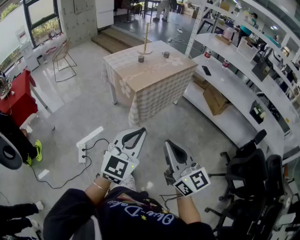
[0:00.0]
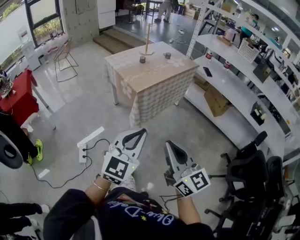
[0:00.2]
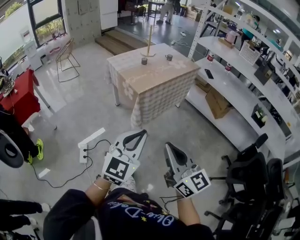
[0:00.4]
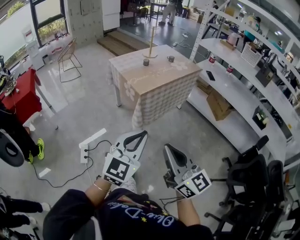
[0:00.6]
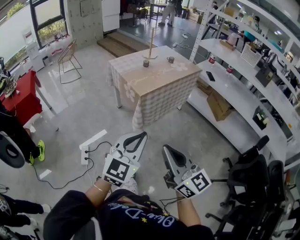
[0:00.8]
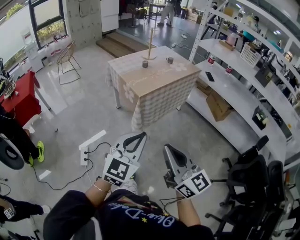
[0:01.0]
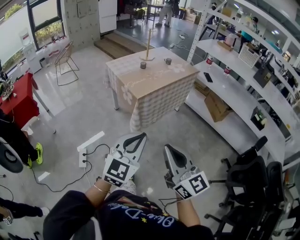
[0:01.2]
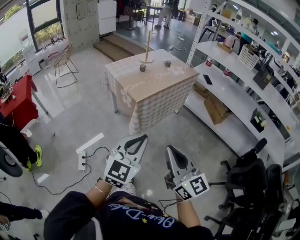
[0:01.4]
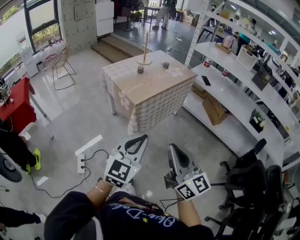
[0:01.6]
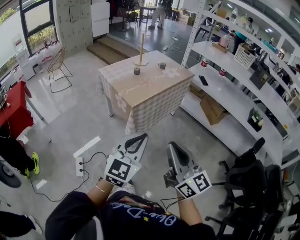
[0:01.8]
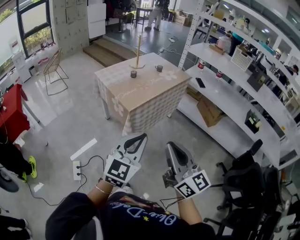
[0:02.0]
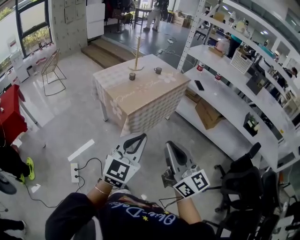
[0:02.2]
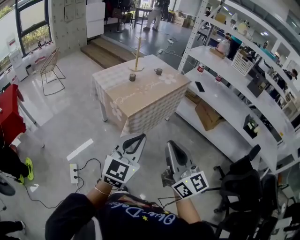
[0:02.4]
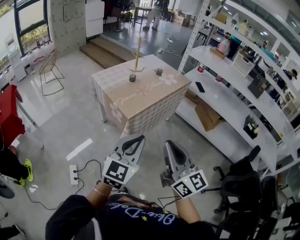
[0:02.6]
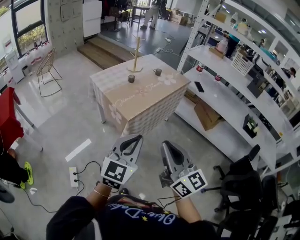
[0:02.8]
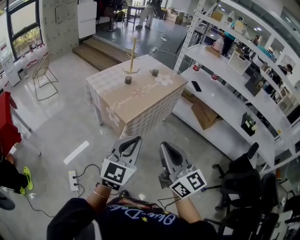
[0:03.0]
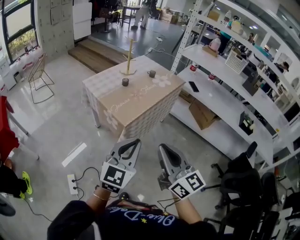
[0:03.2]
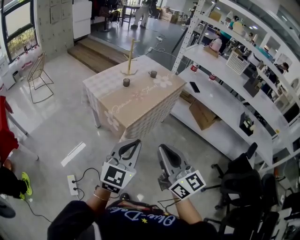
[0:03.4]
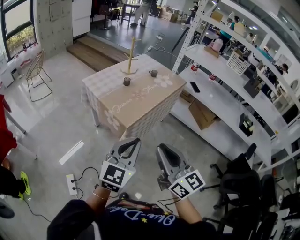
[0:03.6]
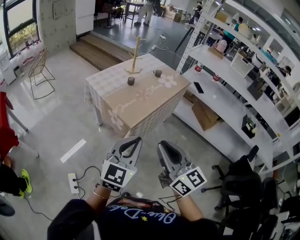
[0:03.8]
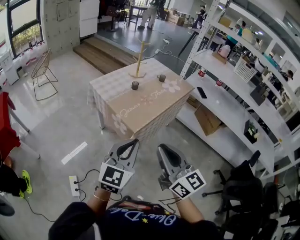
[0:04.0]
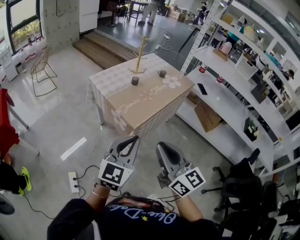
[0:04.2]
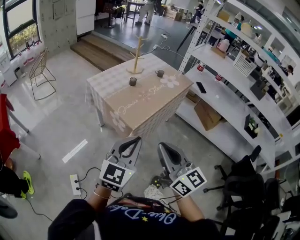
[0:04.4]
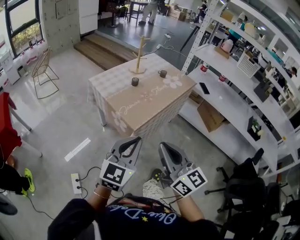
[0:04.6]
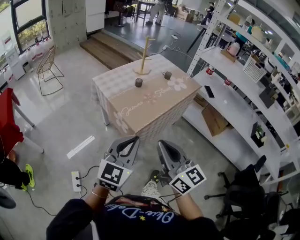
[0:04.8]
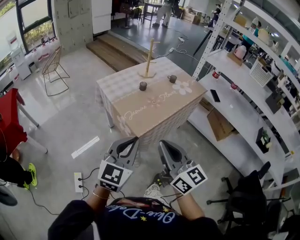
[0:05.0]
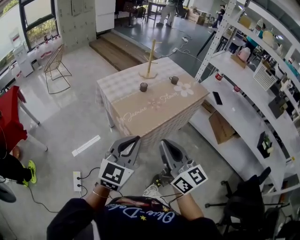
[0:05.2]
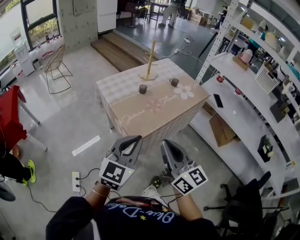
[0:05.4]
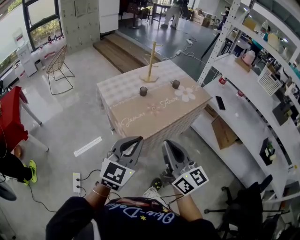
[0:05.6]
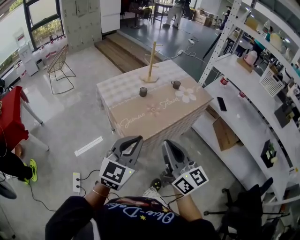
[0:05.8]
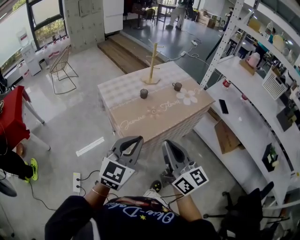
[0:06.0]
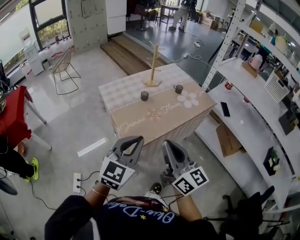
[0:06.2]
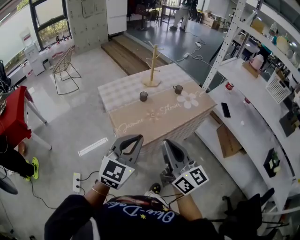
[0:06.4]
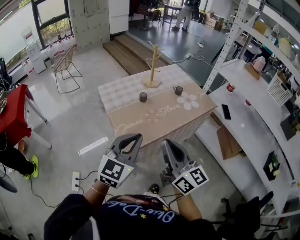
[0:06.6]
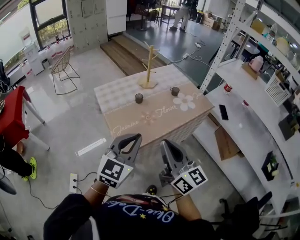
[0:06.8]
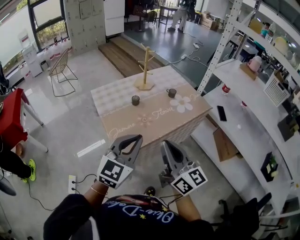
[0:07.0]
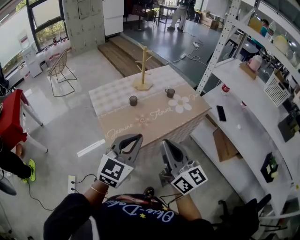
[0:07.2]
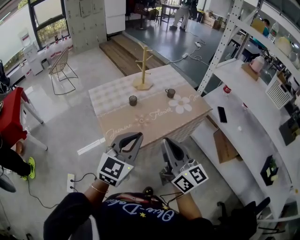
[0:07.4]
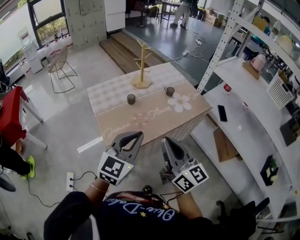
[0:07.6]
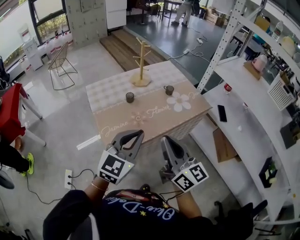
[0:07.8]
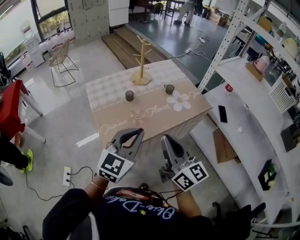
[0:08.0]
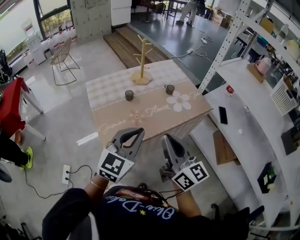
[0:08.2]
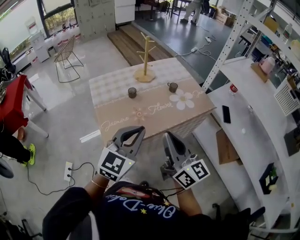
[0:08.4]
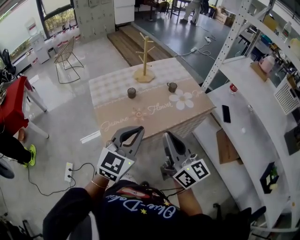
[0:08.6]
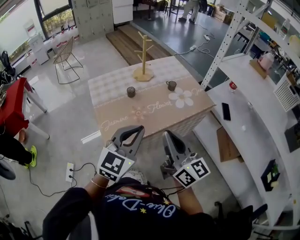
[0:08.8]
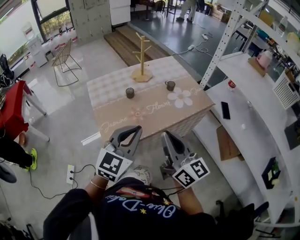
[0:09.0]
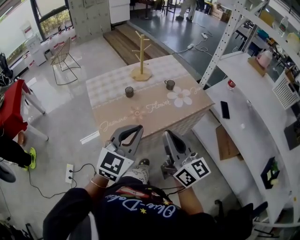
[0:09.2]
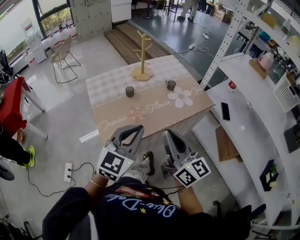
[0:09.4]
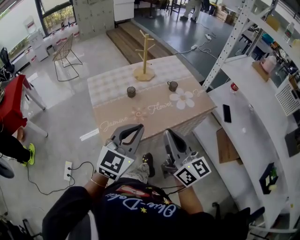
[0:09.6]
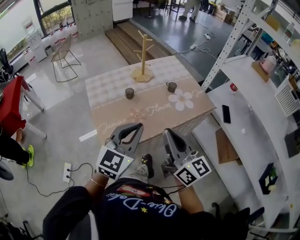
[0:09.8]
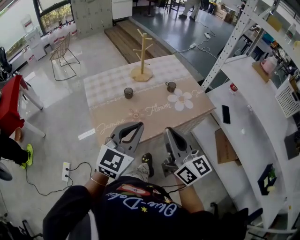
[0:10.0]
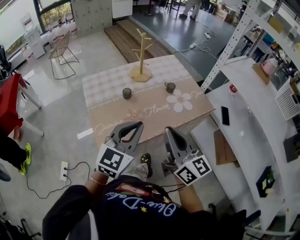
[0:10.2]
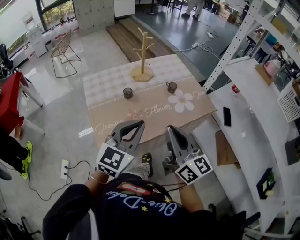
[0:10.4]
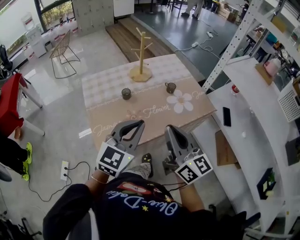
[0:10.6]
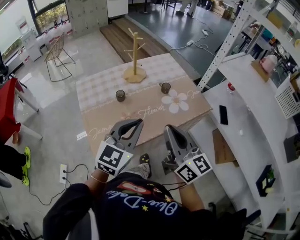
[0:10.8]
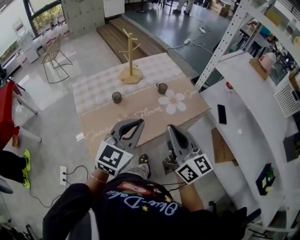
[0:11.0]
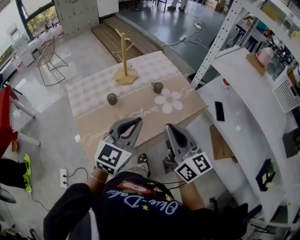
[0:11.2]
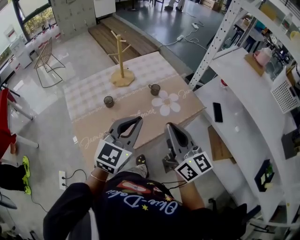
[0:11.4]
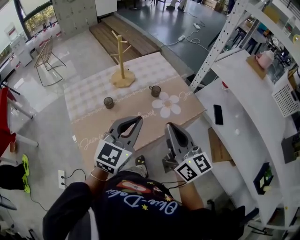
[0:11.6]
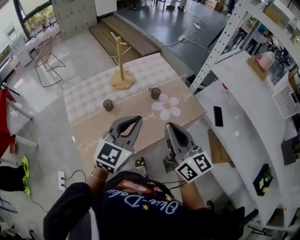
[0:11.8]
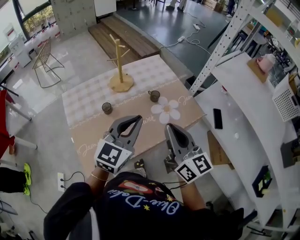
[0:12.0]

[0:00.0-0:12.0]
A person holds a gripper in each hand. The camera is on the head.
0:00.0 to 0:01.6: The grippers both shift forward by roughly 5 cm.
0:01.6 to 0:03.0: Both grippers travel together forward, approximately 15 cm.
0:03.0 to 0:04.4: Both grippers travel together forward and to the left, about 10 cm.
0:04.4 to 0:06.0: The two grippers go about 15 cm forward and to the right.
0:06.0 to 0:07.6: Both grippers move to the right and forward, some 15 cm.
0:07.6 to 0:09.0: The grippers make only small movements.
0:09.0 to 0:10.4: Both grippers move forward, approximately 5 cm.
0:10.4 to 0:12.0: The two grippers go approximately 15 cm forward and to the right.

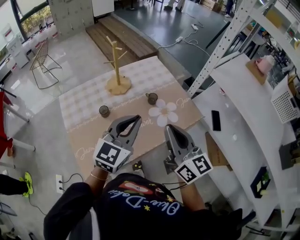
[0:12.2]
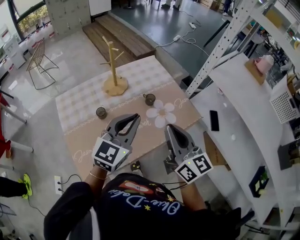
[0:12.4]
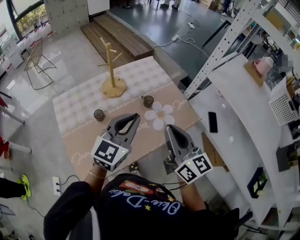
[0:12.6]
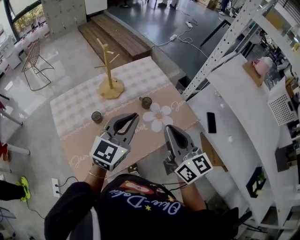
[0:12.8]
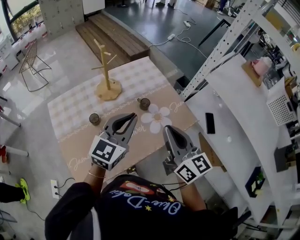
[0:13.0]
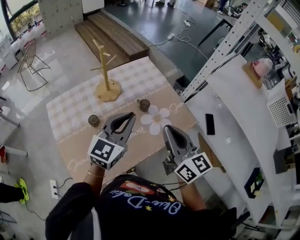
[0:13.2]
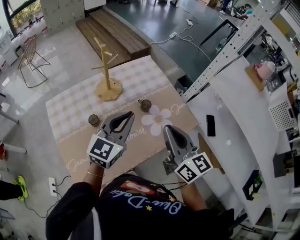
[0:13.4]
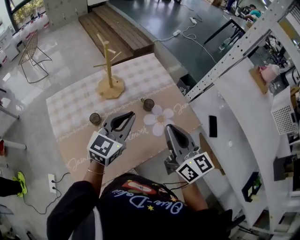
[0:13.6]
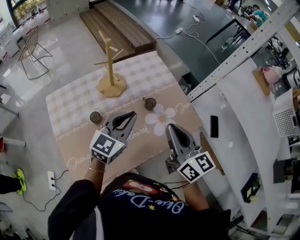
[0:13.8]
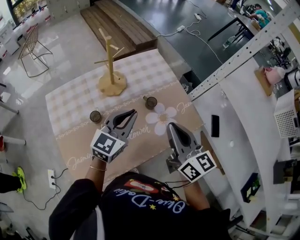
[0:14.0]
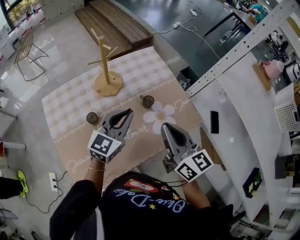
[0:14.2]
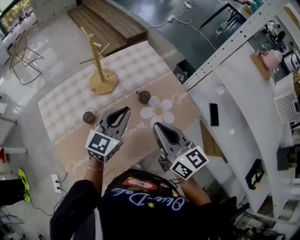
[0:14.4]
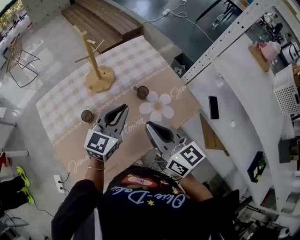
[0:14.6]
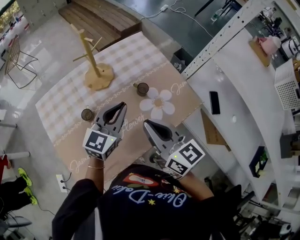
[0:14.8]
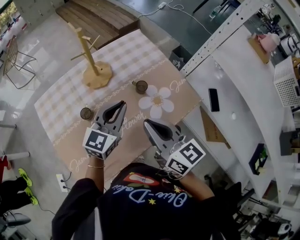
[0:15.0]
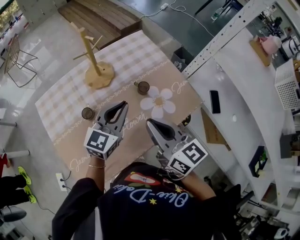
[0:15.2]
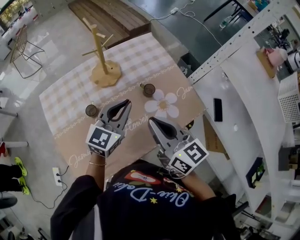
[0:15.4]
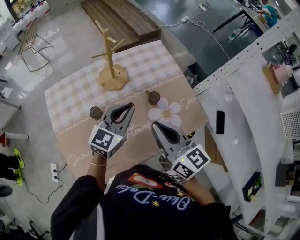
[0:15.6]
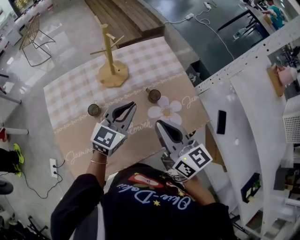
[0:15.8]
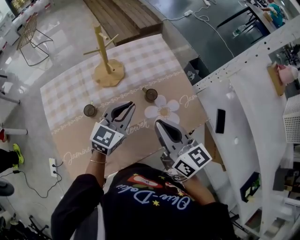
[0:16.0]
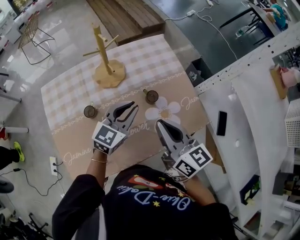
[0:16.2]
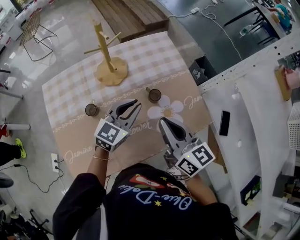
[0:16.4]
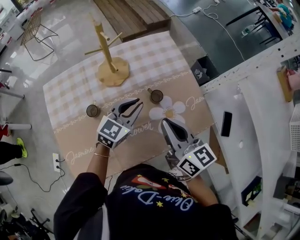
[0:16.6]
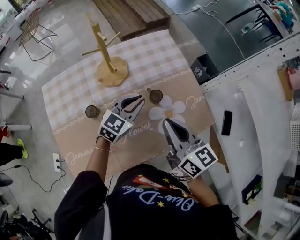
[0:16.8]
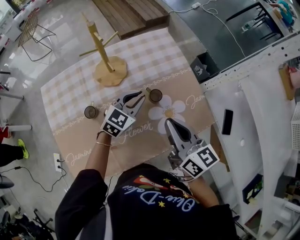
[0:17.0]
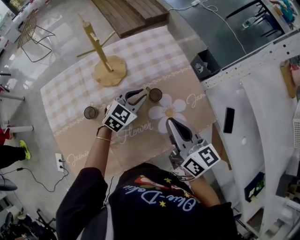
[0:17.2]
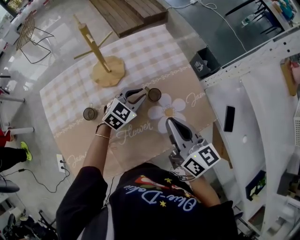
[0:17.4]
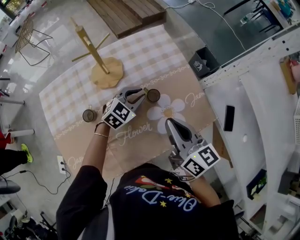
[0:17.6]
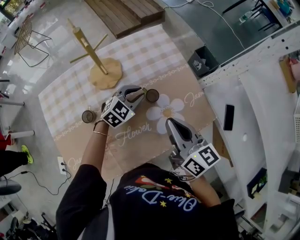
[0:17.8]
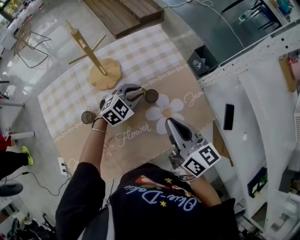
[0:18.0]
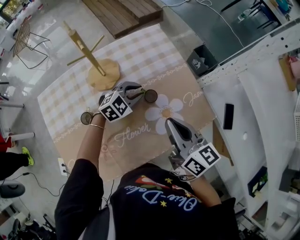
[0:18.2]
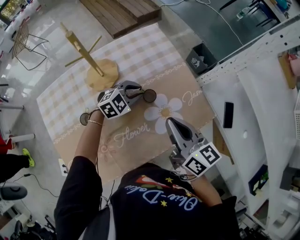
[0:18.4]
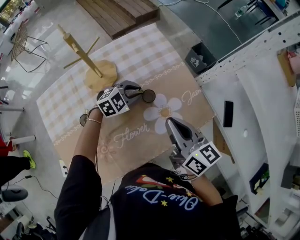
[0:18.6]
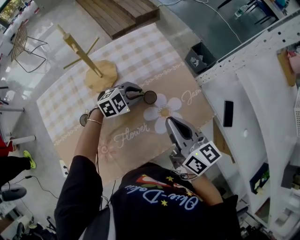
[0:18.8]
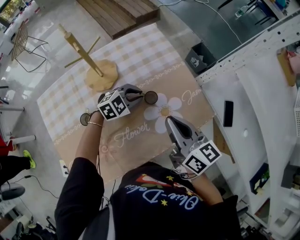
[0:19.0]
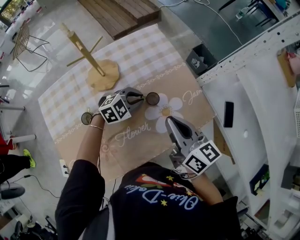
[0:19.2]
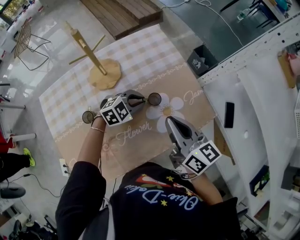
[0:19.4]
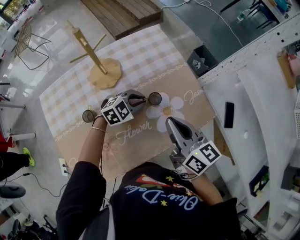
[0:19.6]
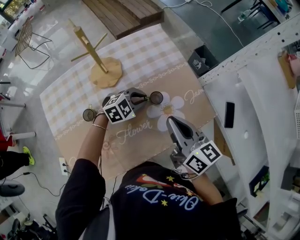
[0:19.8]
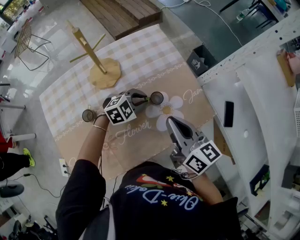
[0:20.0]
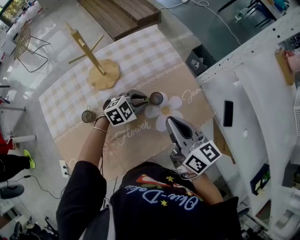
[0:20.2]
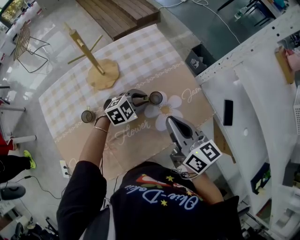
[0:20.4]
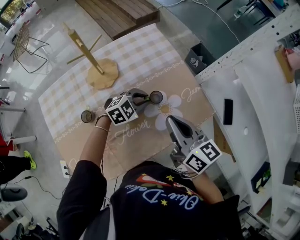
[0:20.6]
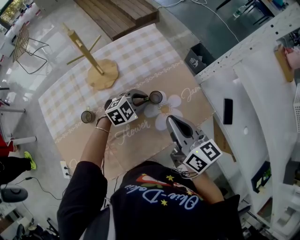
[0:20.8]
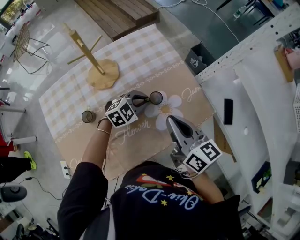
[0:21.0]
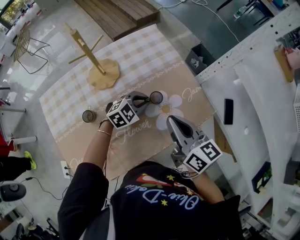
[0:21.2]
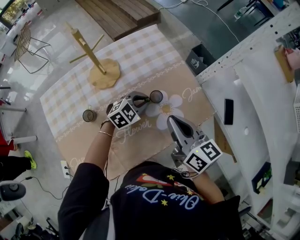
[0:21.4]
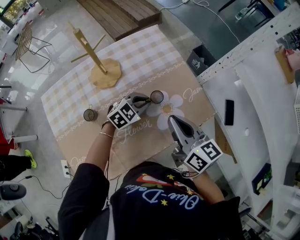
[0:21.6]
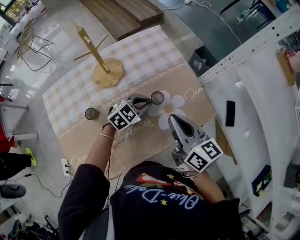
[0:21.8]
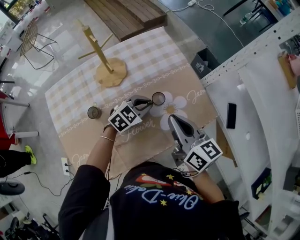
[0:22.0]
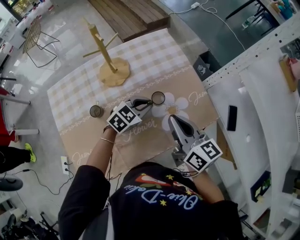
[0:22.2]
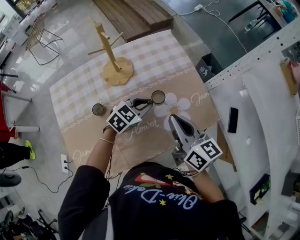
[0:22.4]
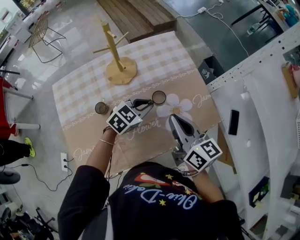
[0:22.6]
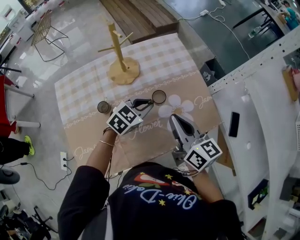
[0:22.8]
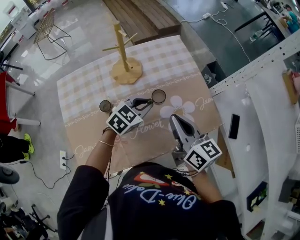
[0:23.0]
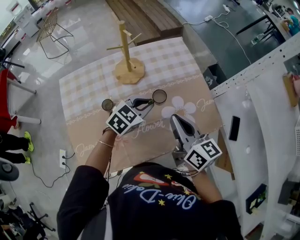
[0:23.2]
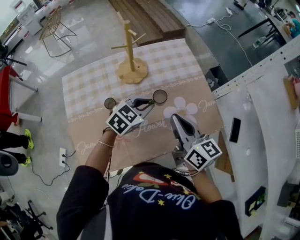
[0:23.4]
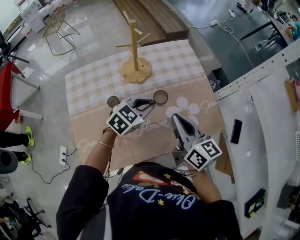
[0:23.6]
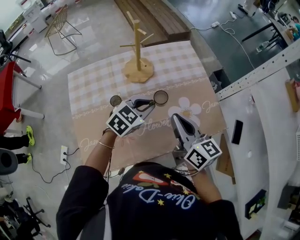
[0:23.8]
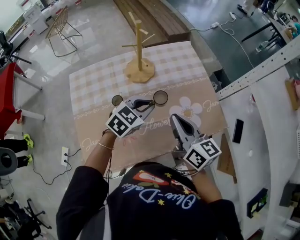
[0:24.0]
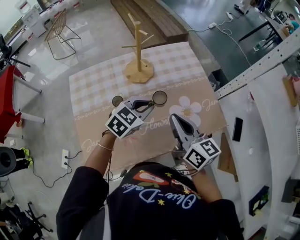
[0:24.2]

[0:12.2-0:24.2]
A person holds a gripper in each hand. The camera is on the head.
0:12.2 to 0:13.8: The left gripper travels forward and downward by some 15 cm. The right gripper heads forward, covering some 10 cm.
0:13.8 to 0:15.2: The right gripper shifts by about 5 cm.
0:15.2 to 0:16.6: The left gripper heads downward and forward, covering some 10 cm. The right gripper travels forward by some 5 cm.
0:16.6 to 0:18.2: The left gripper moves downward and forward, about 10 cm, and swivels roughly 40 degrees.
0:18.2 to 0:21.2: The grippers move only a little.
0:21.2 to 0:22.6: The left gripper heads upward, covering some 5 cm, and changes its angle by approximately 20 degrees.
0:22.6 to 0:24.2: The right gripper is displaced to the left by some 5 cm; the left gripper goes roughly 10 cm upward and to the left.
